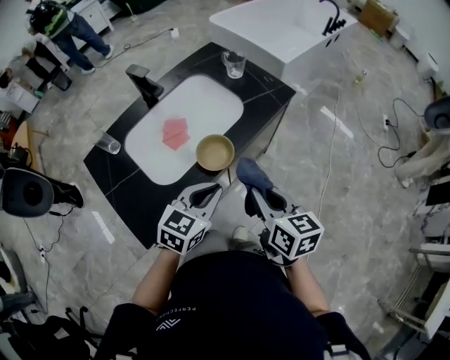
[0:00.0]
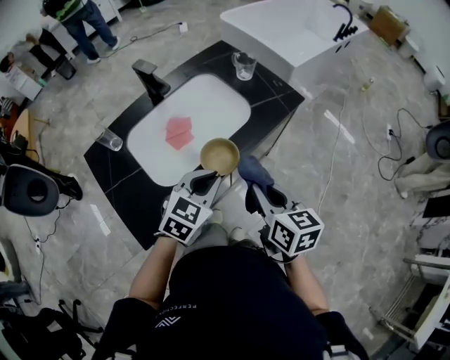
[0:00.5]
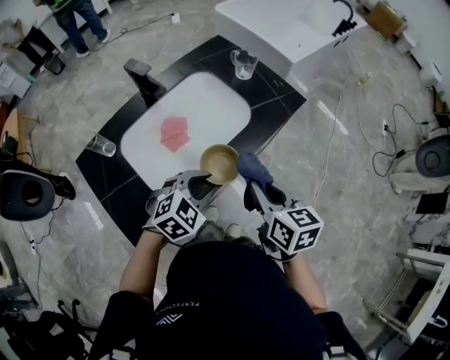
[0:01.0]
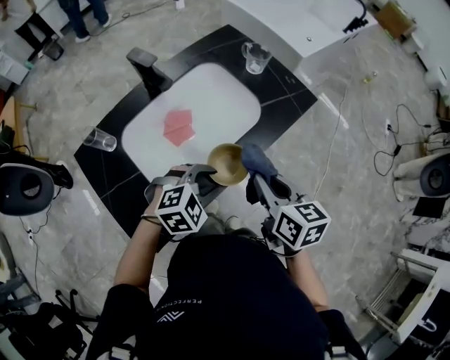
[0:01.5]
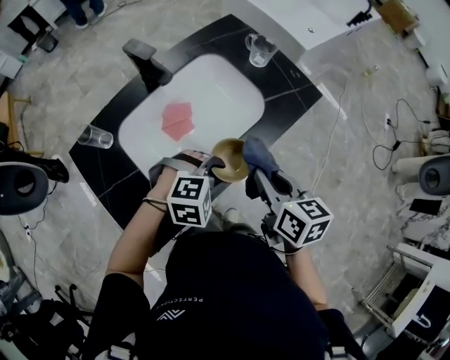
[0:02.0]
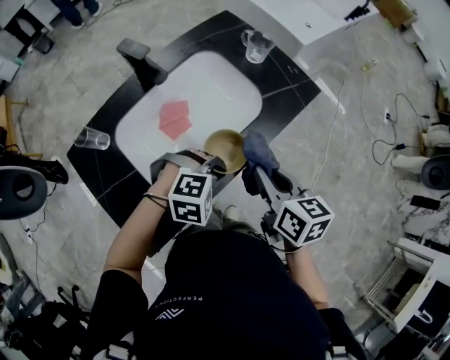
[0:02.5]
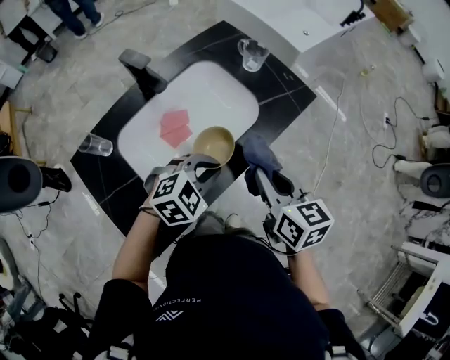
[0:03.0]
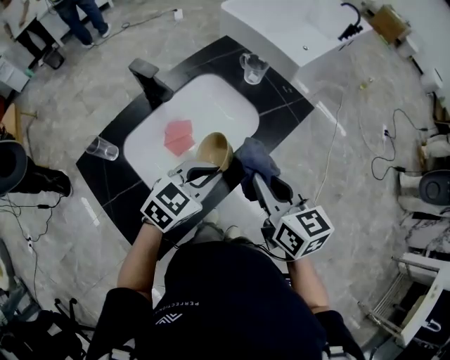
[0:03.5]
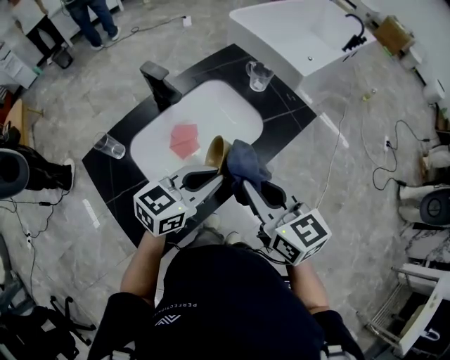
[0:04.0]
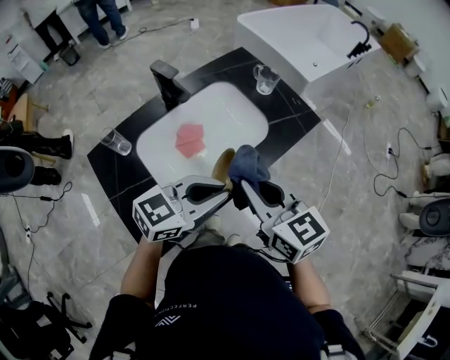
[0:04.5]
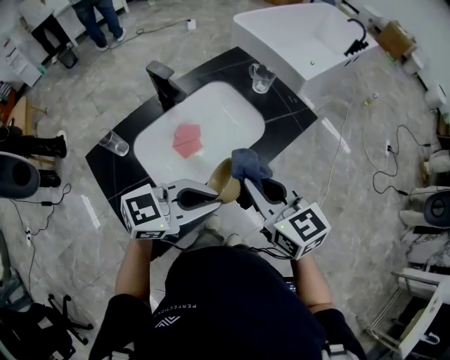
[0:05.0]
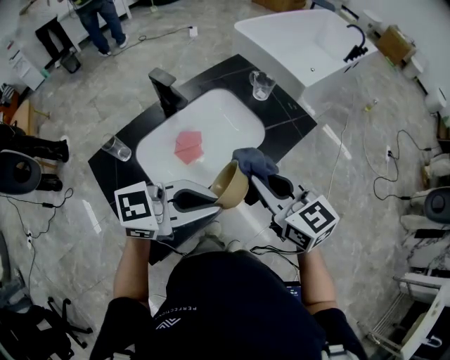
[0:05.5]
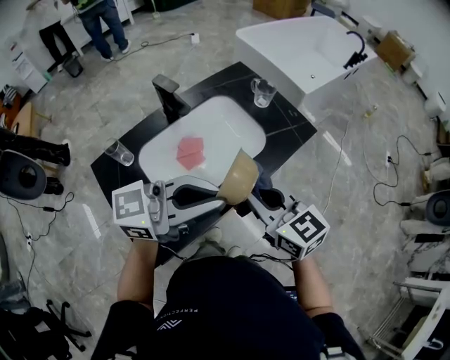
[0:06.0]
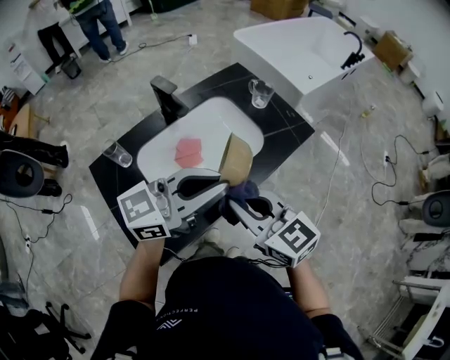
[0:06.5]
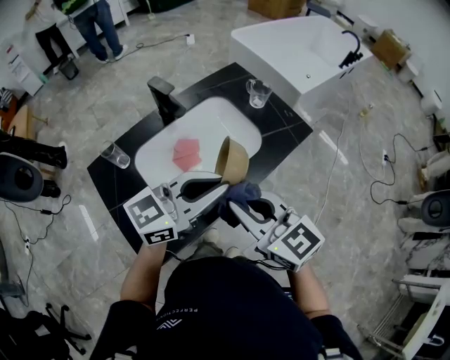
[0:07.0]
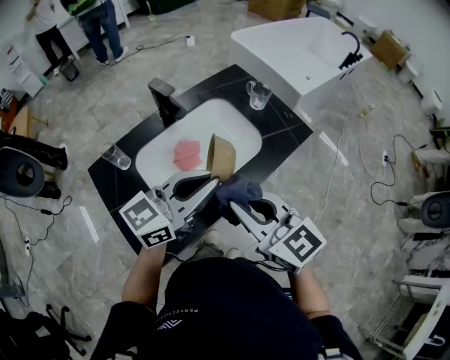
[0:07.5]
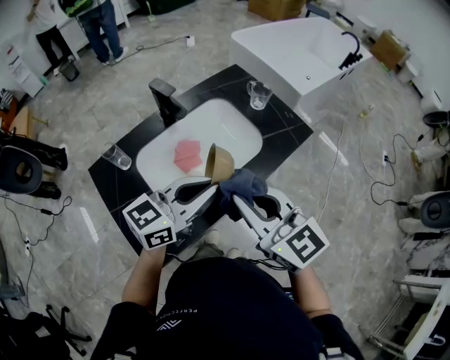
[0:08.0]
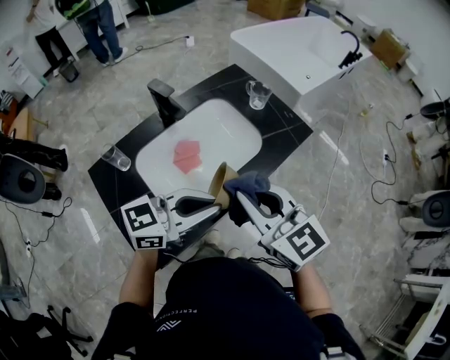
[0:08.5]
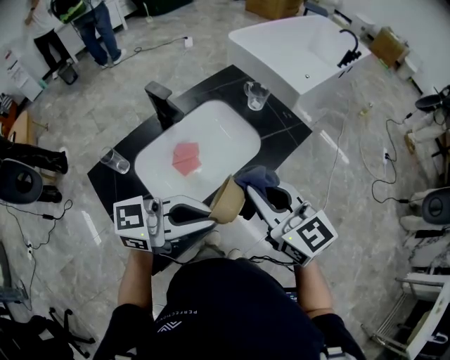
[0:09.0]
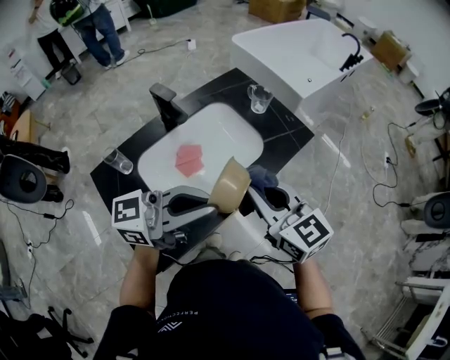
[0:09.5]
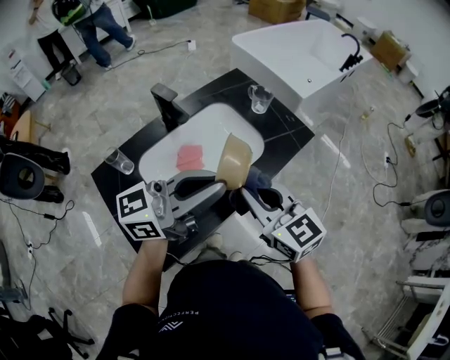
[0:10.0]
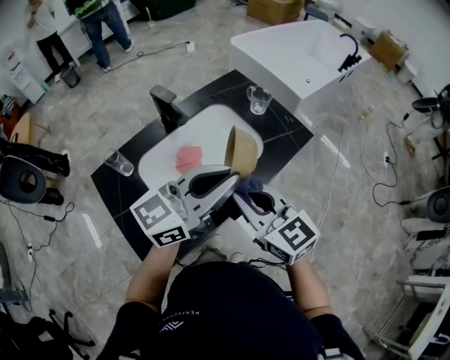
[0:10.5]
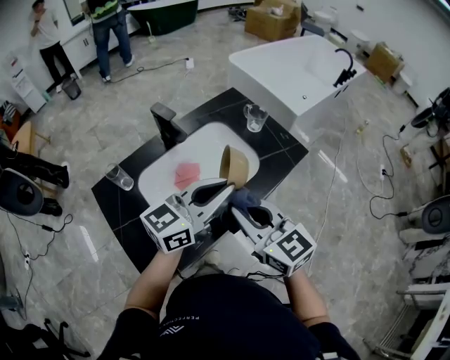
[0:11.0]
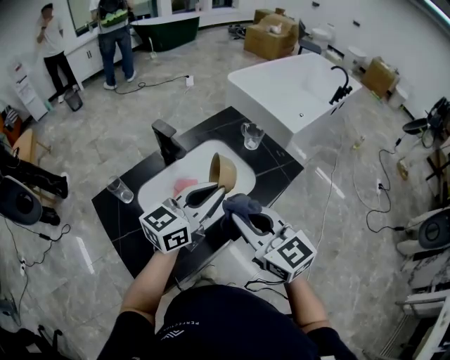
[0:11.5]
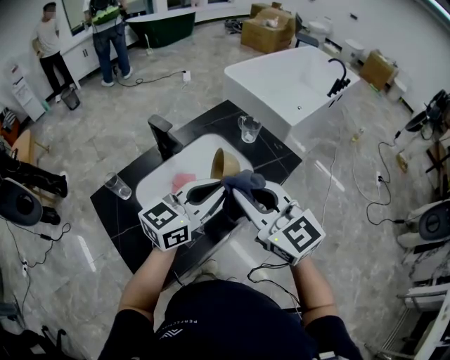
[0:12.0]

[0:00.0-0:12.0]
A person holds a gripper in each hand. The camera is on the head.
0:00.0 to 0:02.0: The left gripper shifts roughly 10 cm downward and forward, tilts its fingers about 30 degrees downward, and opens. Meanwhile the right gripper goes some 10 cm forward and to the left.
0:02.0 to 0:04.0: The two grippers go some 10 cm upward. The left gripper angles its fingers upward, by some 50 degrees, and closes; the right gripper changes its angle by roughly 30 degrees.
0:04.0 to 0:06.0: The left gripper shifts approximately 15 cm upward and backward, and swivels some 30 degrees.
0:06.0 to 0:08.0: The left gripper is displaced downward by roughly 5 cm, and turns by some 30 degrees. Meanwhile the right gripper is displaced upward by roughly 5 cm.
0:08.0 to 0:10.0: The right gripper moves roughly 5 cm. Meanwhile the left gripper heads upward, covering roughly 10 cm, and rotates roughly 20 degrees.
0:10.0 to 0:12.0: The right gripper travels upward by approximately 10 cm, while the left gripper goes approximately 5 cm forward, and rotates roughly 20 degrees.

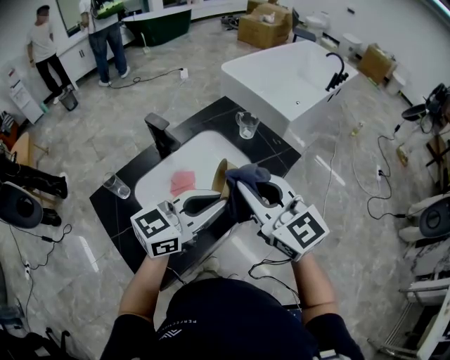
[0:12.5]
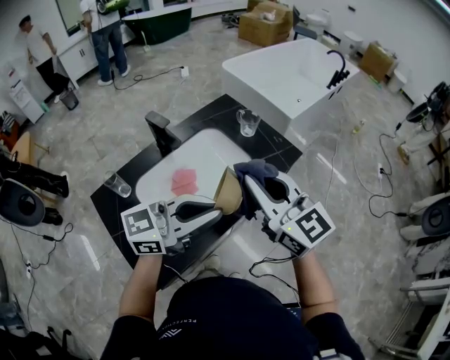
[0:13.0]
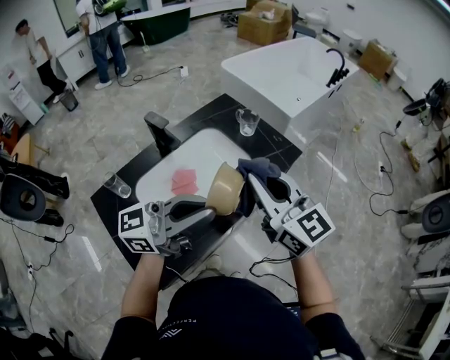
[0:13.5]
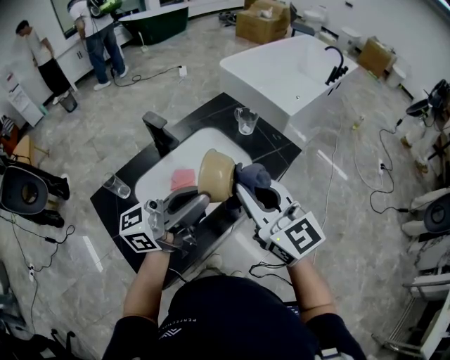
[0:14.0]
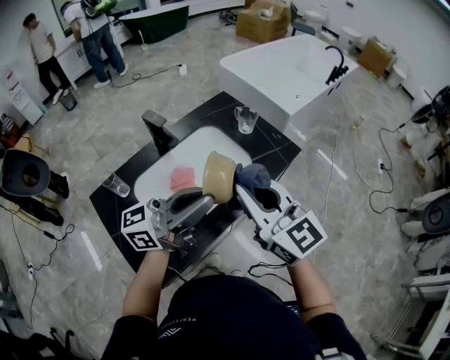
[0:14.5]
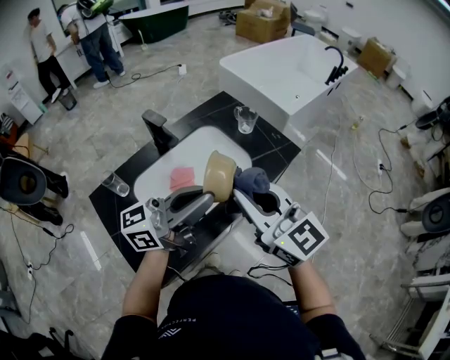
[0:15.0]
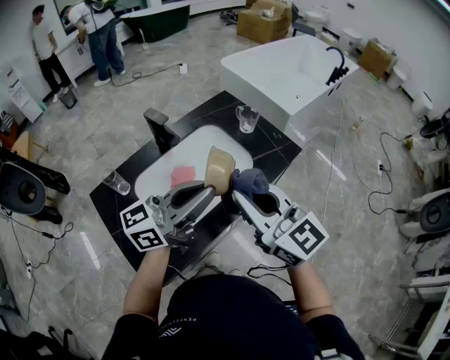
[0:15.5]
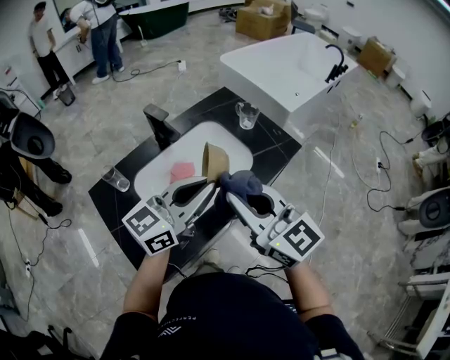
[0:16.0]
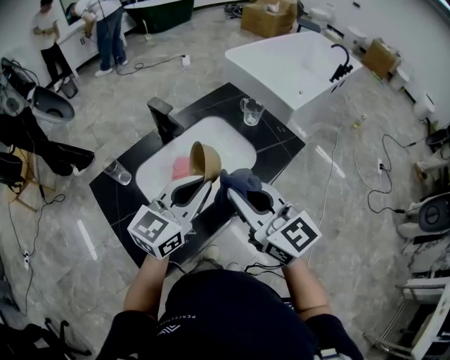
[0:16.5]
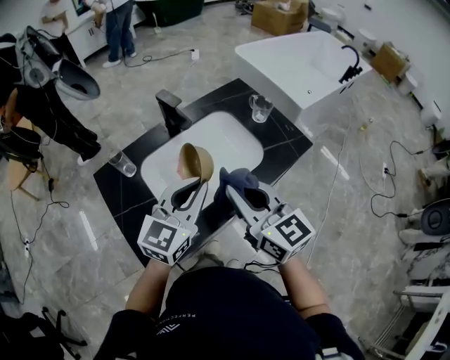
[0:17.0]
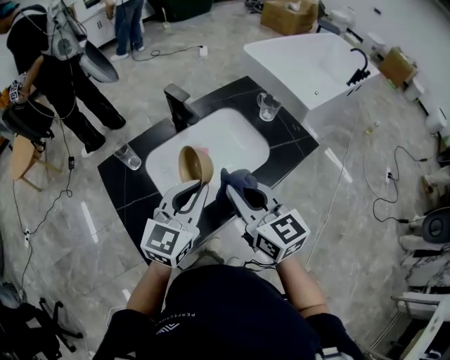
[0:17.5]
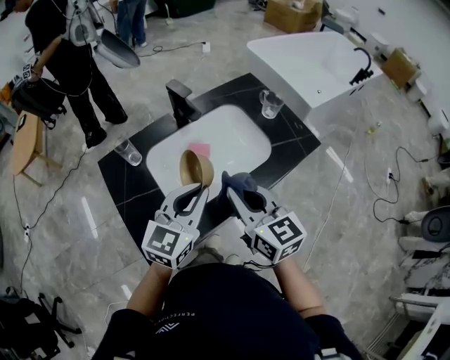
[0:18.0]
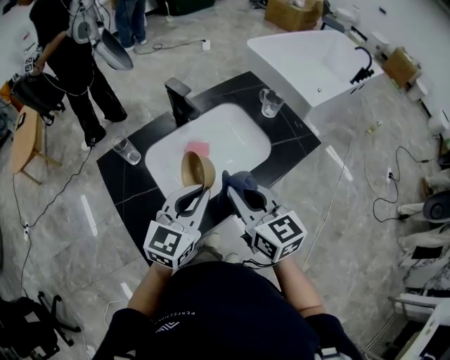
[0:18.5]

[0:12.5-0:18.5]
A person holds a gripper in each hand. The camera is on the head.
0:12.5 to 0:14.5: The left gripper changes place by approximately 5 cm, and swivels roughly 30 degrees.
0:14.5 to 0:16.5: The left gripper goes approximately 5 cm downward, and rotates roughly 40 degrees.
0:16.5 to 0:18.5: Both grippers travel together downward, roughly 5 cm.

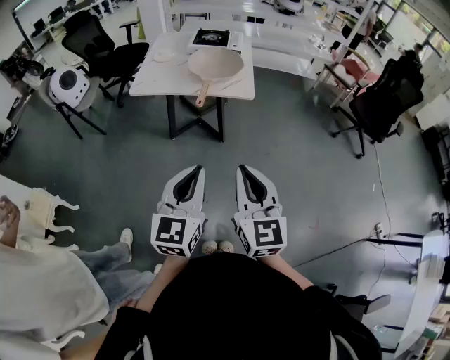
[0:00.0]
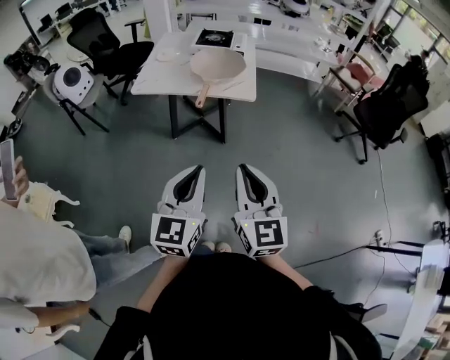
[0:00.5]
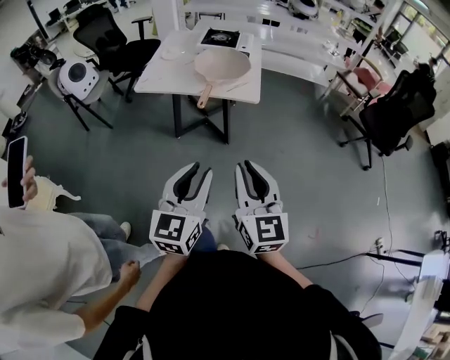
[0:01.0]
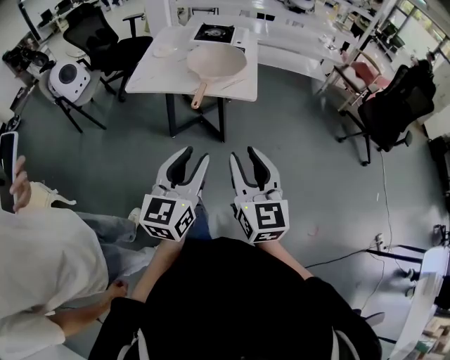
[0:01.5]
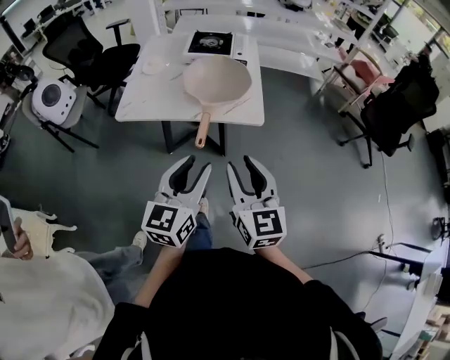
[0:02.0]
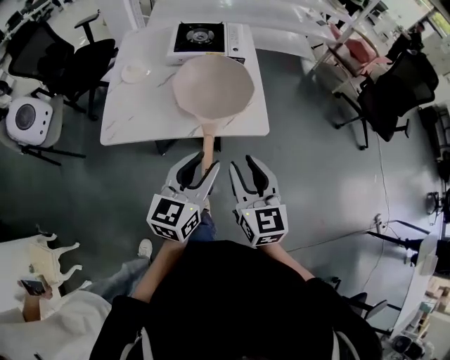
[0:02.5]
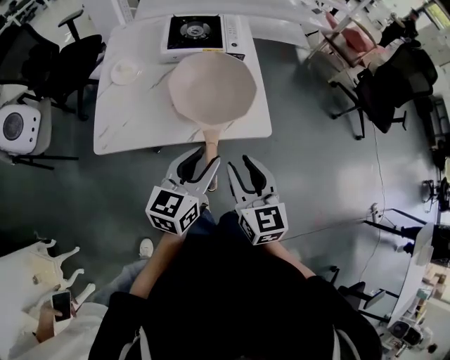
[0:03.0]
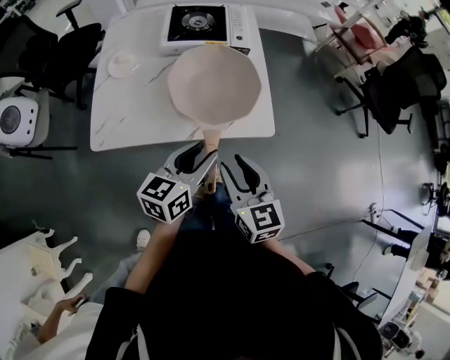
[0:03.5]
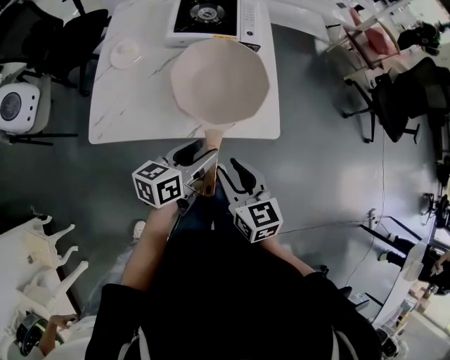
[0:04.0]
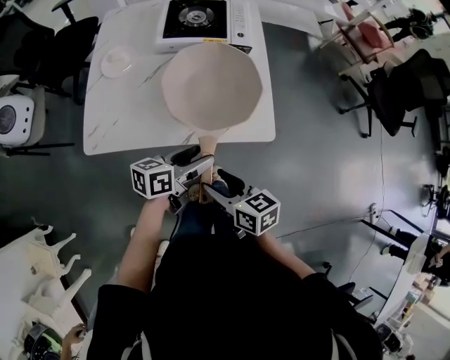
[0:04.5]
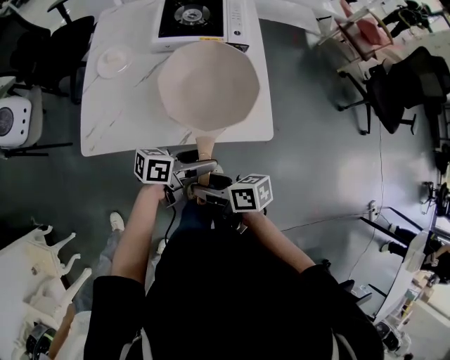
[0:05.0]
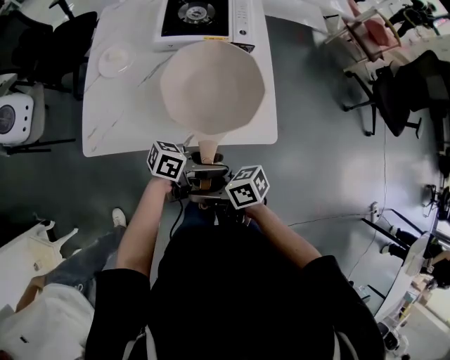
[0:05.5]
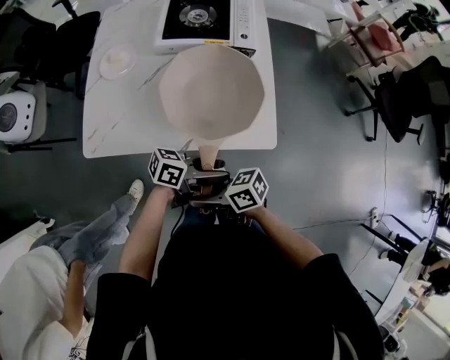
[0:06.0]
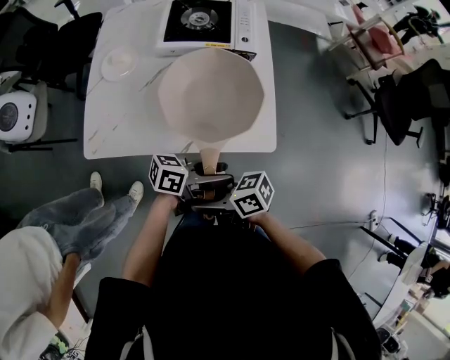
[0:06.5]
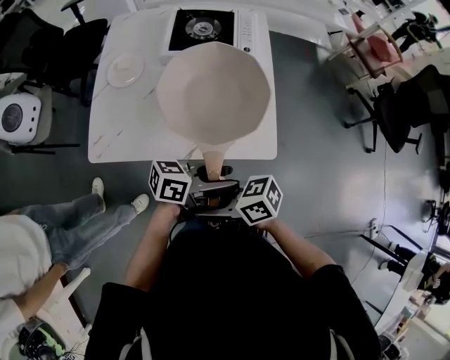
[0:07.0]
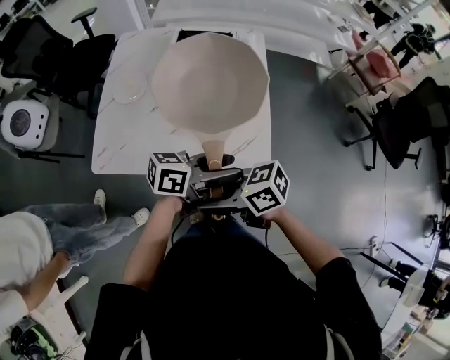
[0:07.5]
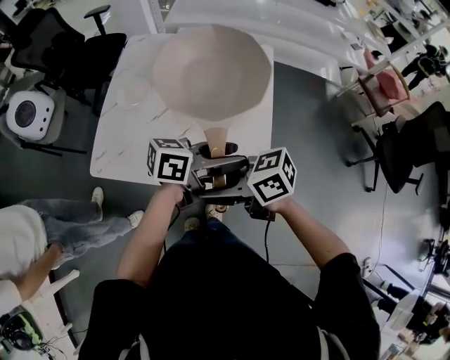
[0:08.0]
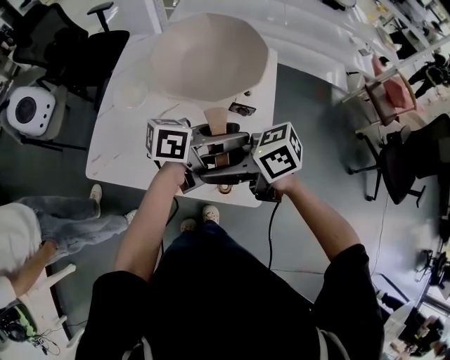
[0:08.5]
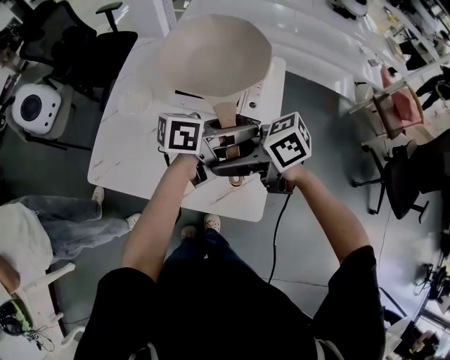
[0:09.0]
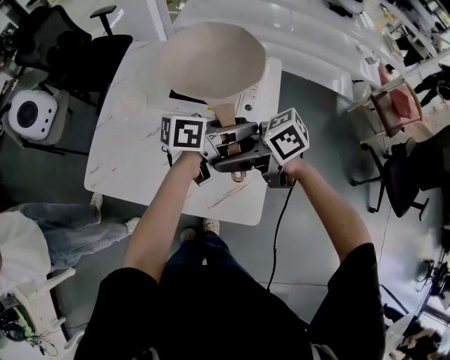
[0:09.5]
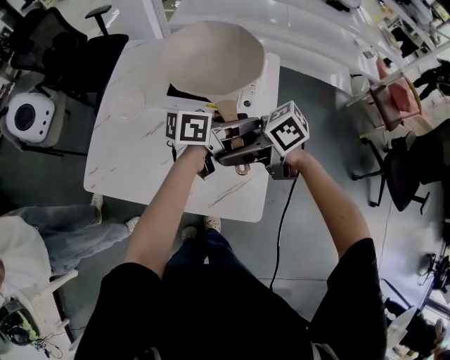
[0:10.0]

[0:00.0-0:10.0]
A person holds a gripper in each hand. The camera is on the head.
0:00.0 to 0:02.0: The two grippers go about 25 cm forward. The left gripper opens up. Meanwhile the right gripper opens its fingers.
0:02.0 to 0:04.0: The left gripper is displaced forward and downward by about 30 cm, and rotates some 40 degrees. Meanwhile the right gripper is displaced forward, downward and to the left by some 25 cm, and changes its angle by some 20 degrees.
0:04.0 to 0:06.0: The left gripper ends up some 10 cm from where it was, and rotates about 40 degrees. Meanwhile the right gripper shifts by roughly 10 cm, and turns by about 60 degrees.
0:06.0 to 0:08.0: The right gripper is displaced upward by roughly 15 cm. Meanwhile the left gripper moves some 20 cm, and rotates some 20 degrees.
0:08.0 to 0:10.0: The right gripper ends up some 15 cm from where it was. The left gripper ends up about 20 cm from where it was.
